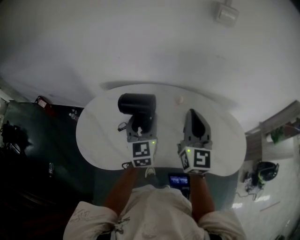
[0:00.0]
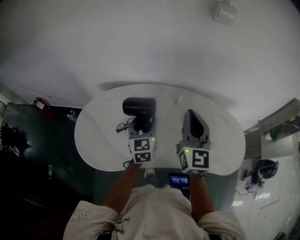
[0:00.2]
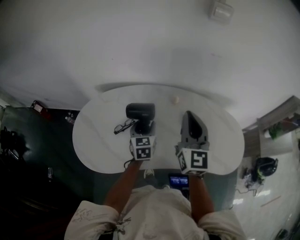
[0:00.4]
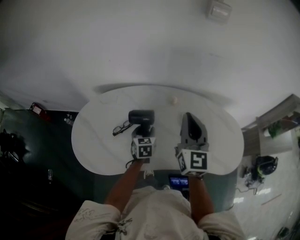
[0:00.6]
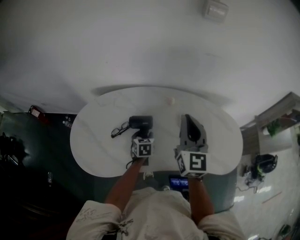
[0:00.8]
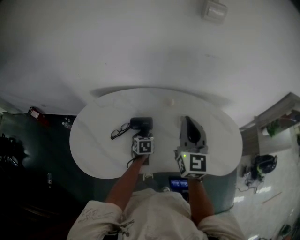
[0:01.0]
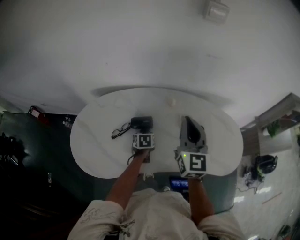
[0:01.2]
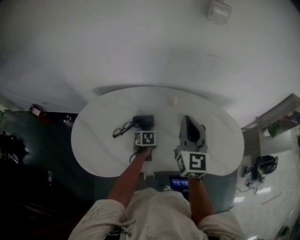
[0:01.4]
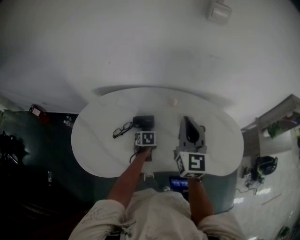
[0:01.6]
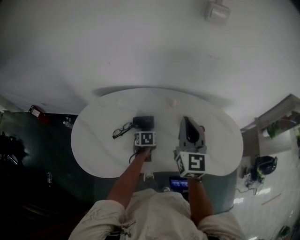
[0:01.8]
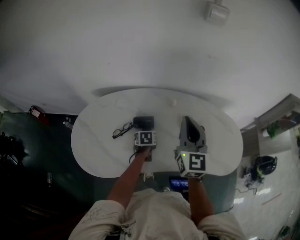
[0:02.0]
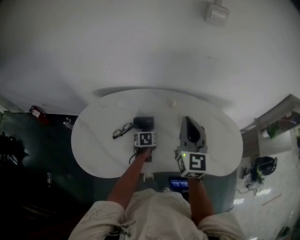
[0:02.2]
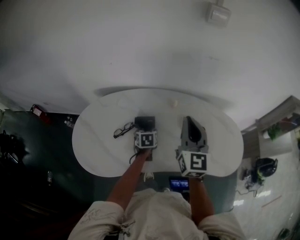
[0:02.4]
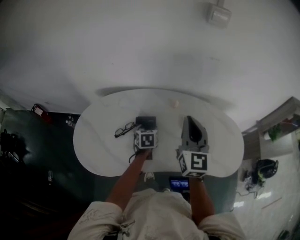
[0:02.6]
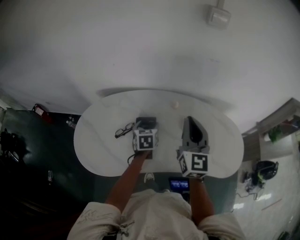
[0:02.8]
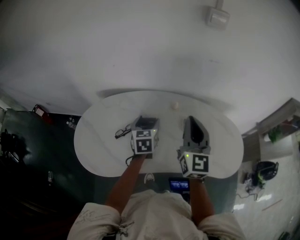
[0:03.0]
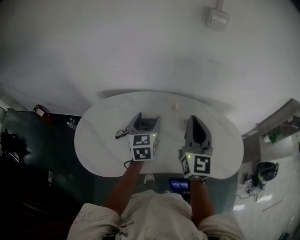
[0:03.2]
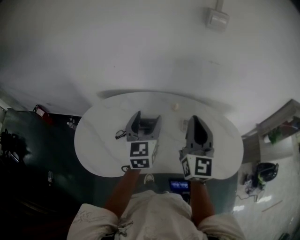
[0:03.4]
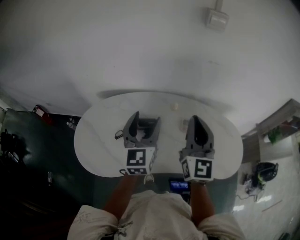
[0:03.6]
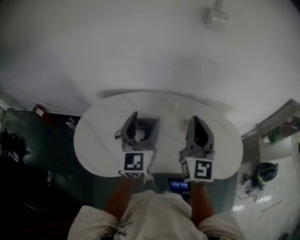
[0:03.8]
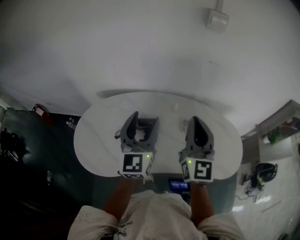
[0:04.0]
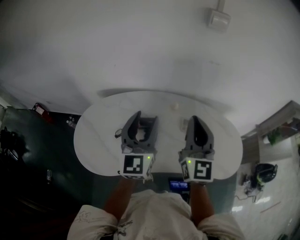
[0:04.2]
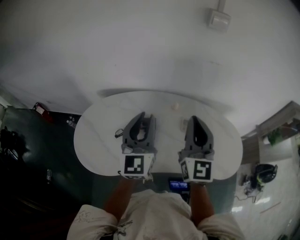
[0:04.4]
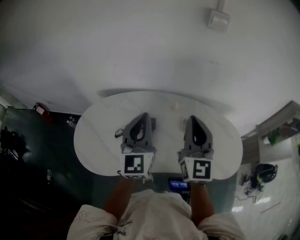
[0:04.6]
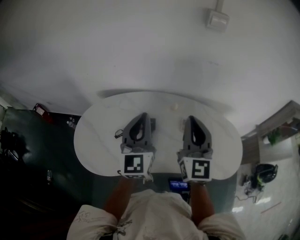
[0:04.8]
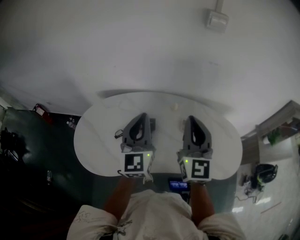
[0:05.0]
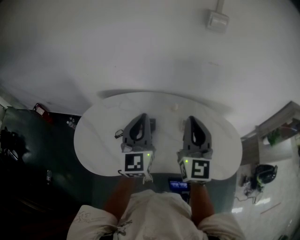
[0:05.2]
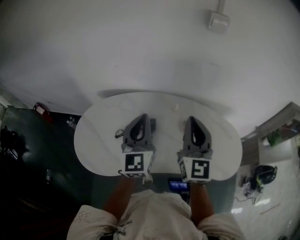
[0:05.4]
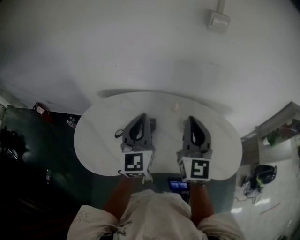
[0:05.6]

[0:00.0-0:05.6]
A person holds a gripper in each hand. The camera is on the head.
0:00.0 to 0:01.4: The left gripper moves downward, roughly 30 cm, and angles its fingers downward, by roughly 50 degrees.
0:01.4 to 0:02.8: The left gripper moves upward, about 15 cm, and swivels roughly 20 degrees.
0:02.8 to 0:04.2: The left gripper goes some 25 cm upward, and points its fingers about 40 degrees further upward; the right gripper goes some 5 cm upward.
0:04.2 to 0:05.6: The left gripper closes up.

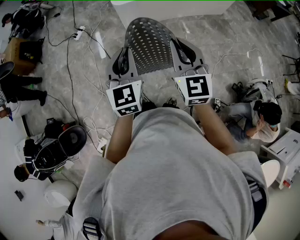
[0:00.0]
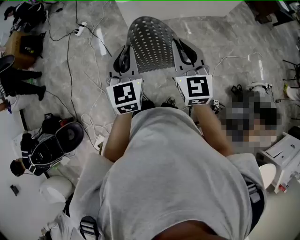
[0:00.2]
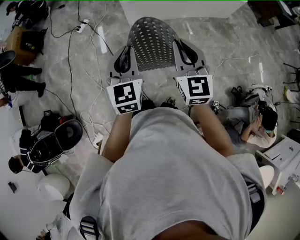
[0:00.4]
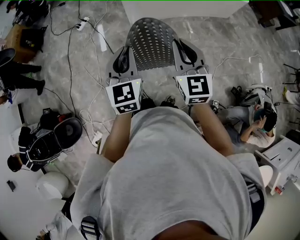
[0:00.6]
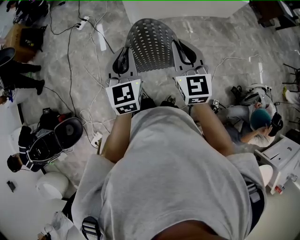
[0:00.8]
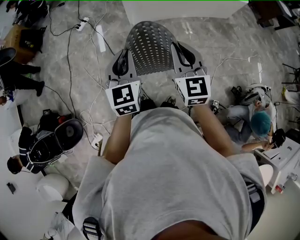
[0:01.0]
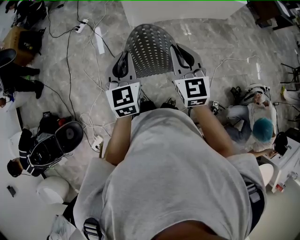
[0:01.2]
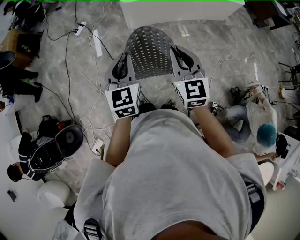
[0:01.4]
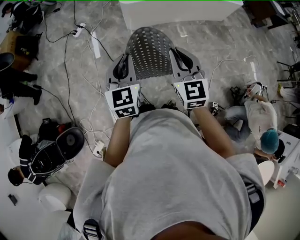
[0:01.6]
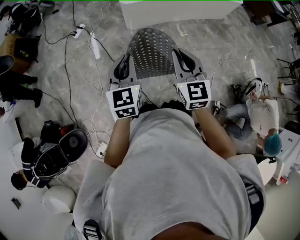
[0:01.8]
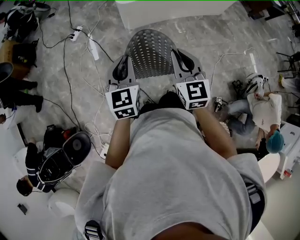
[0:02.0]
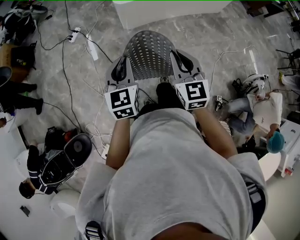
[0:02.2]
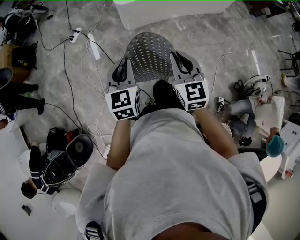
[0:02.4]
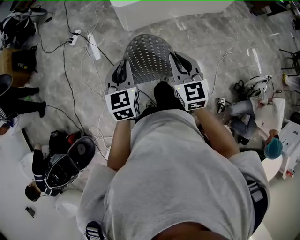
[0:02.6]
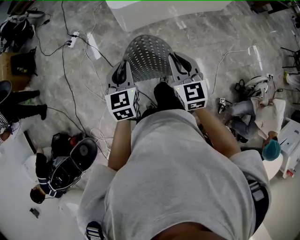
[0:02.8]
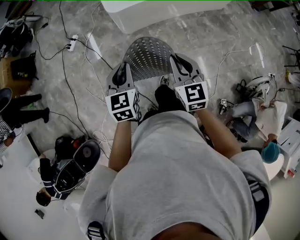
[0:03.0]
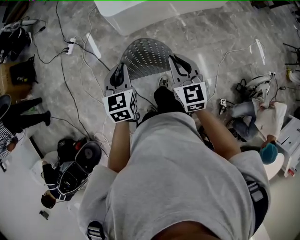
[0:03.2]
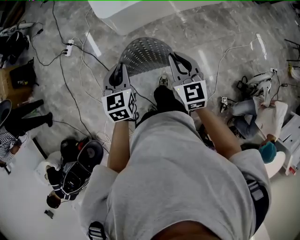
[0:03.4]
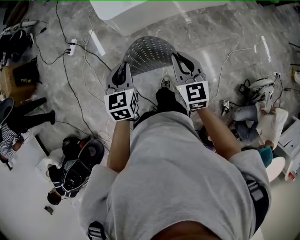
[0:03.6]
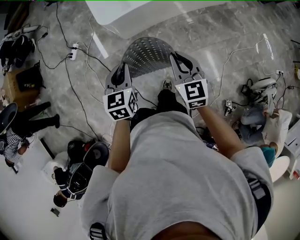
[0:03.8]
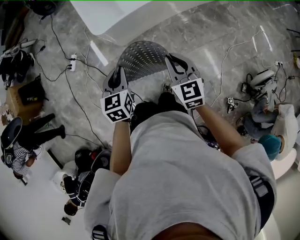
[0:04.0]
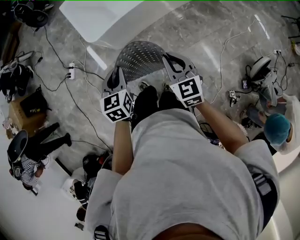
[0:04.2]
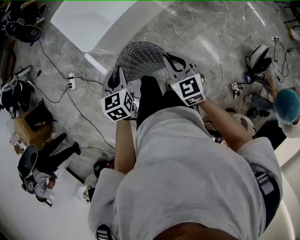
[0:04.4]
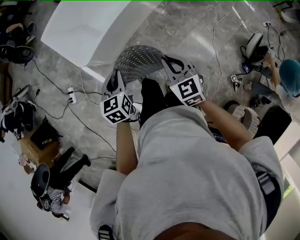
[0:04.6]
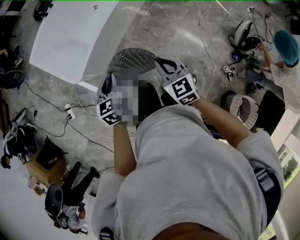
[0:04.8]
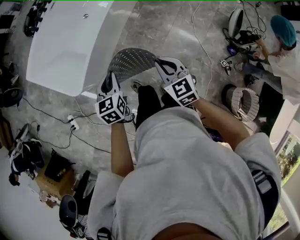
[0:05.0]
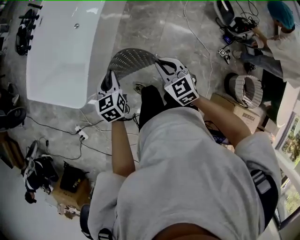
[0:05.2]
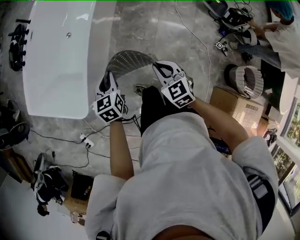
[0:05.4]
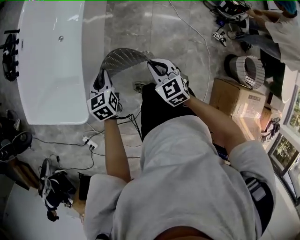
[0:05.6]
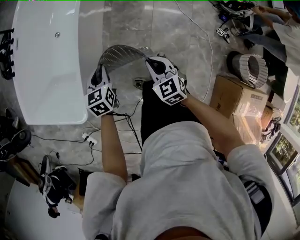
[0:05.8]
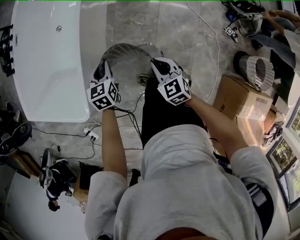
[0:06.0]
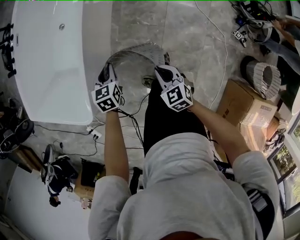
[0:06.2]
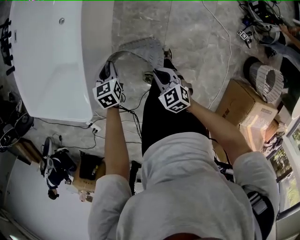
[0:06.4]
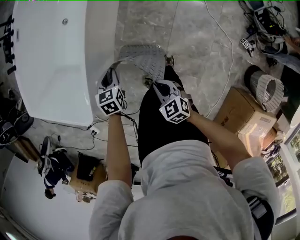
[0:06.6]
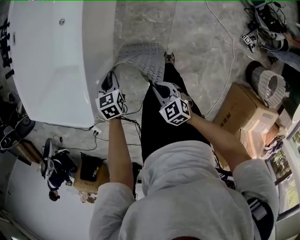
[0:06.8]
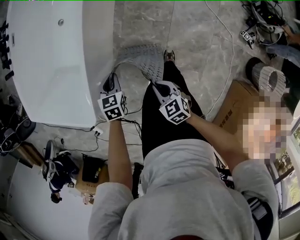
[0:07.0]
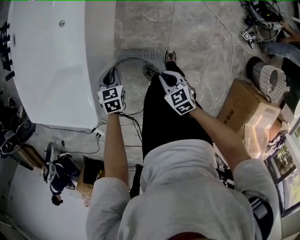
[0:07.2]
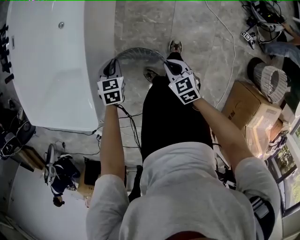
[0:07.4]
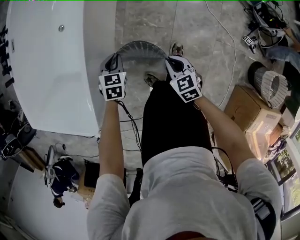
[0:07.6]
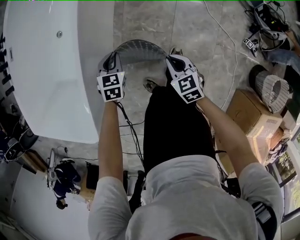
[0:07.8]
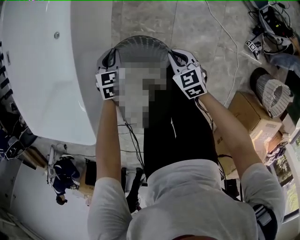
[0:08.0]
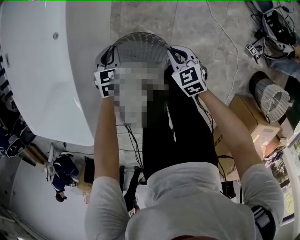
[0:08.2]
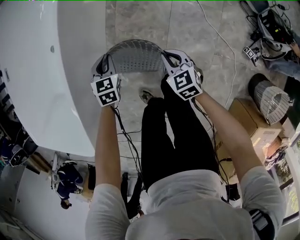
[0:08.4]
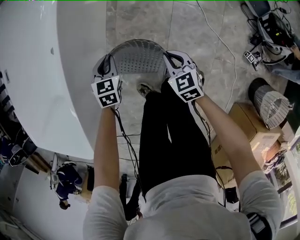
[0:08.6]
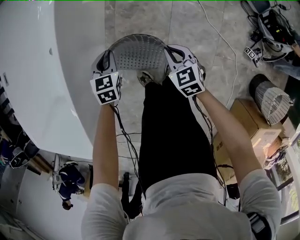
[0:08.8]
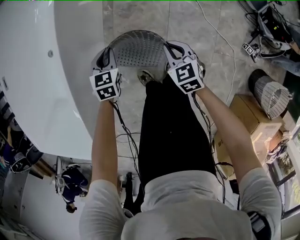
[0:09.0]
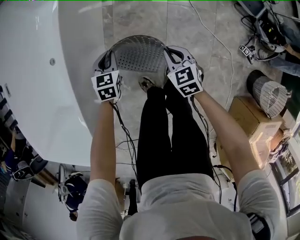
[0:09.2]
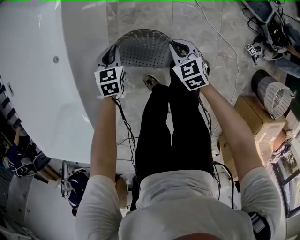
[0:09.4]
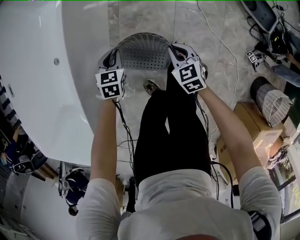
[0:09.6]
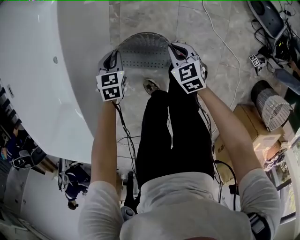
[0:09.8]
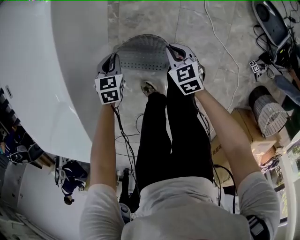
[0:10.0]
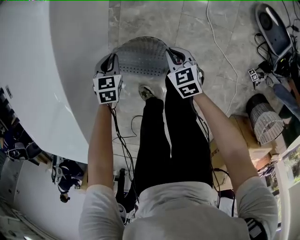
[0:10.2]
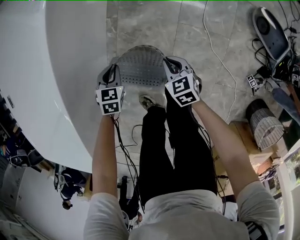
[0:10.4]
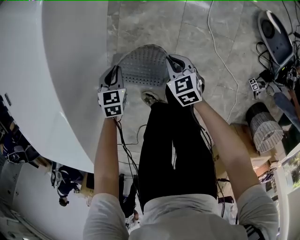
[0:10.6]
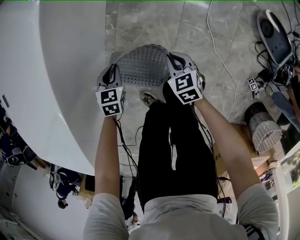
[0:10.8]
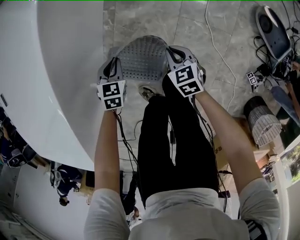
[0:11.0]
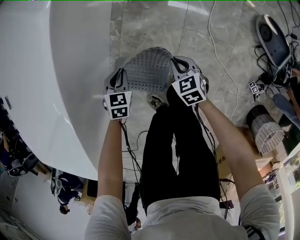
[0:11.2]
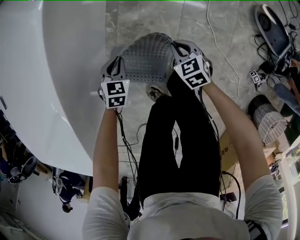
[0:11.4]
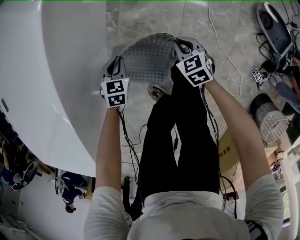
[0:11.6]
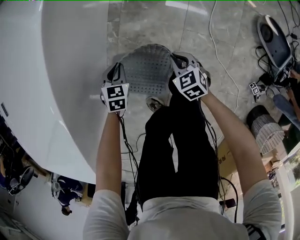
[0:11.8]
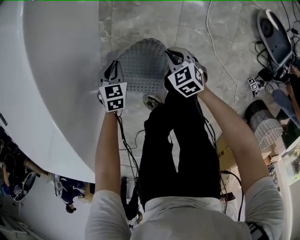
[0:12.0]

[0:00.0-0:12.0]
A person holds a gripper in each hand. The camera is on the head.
0:00.0 to 0:01.6: The two grippers go about 10 cm to the left.
0:01.6 to 0:03.0: The grippers both shift forward and downward by approximately 15 cm.
0:03.0 to 0:04.4: The right gripper heads forward, to the right and downward, covering some 20 cm. The left gripper heads forward and to the right, covering some 25 cm.
0:04.4 to 0:06.0: The right gripper heads downward, covering some 20 cm, and turns by some 40 degrees. Meanwhile the left gripper changes place by roughly 35 cm, and turns by approximately 40 degrees.
0:06.0 to 0:07.6: The grippers both shift downward and forward by roughly 15 cm. The left gripper rotates about 20 degrees.
0:07.6 to 0:09.0: The left gripper moves forward, to the right and downward, about 20 cm. Meanwhile the right gripper travels forward and to the right by some 25 cm.
0:09.0 to 0:10.4: The two grippers go approximately 15 cm forward, downward and to the right.
0:10.4 to 0:12.0: The left gripper shifts about 10 cm downward, while the right gripper travels downward and forward by some 10 cm.

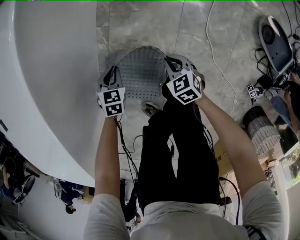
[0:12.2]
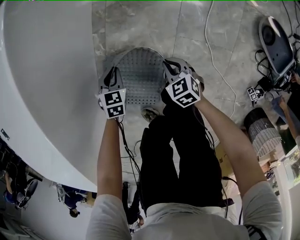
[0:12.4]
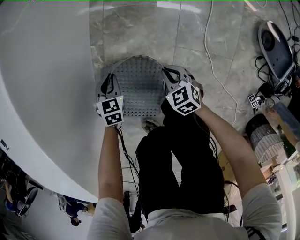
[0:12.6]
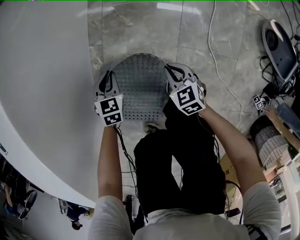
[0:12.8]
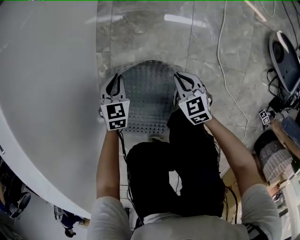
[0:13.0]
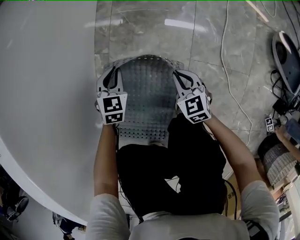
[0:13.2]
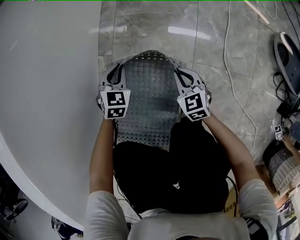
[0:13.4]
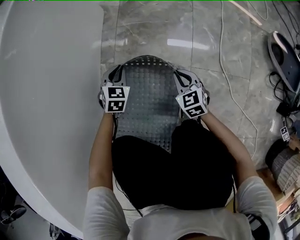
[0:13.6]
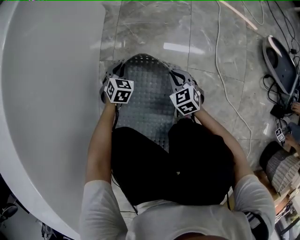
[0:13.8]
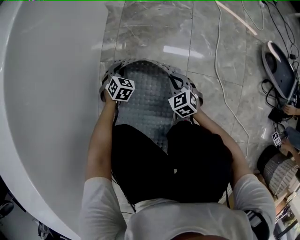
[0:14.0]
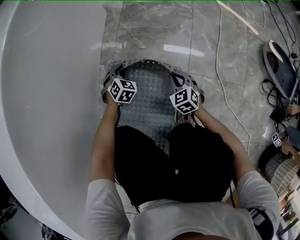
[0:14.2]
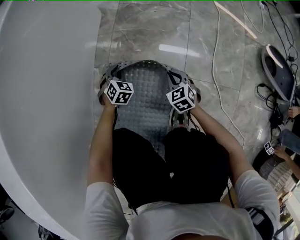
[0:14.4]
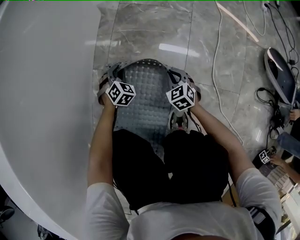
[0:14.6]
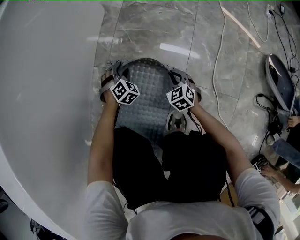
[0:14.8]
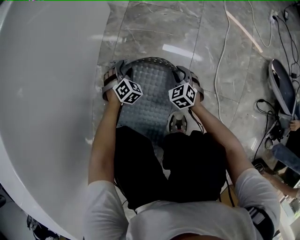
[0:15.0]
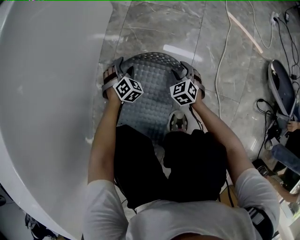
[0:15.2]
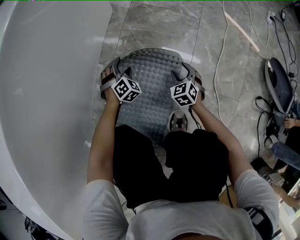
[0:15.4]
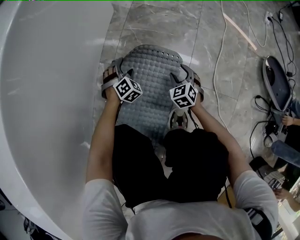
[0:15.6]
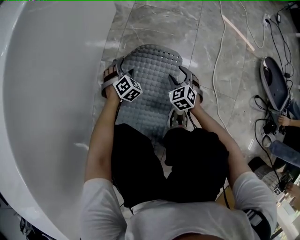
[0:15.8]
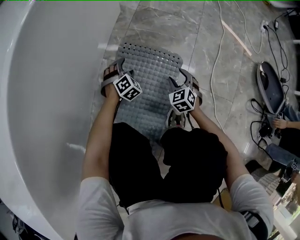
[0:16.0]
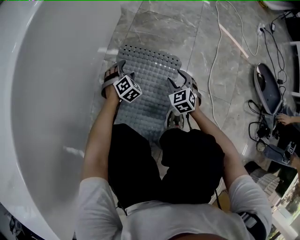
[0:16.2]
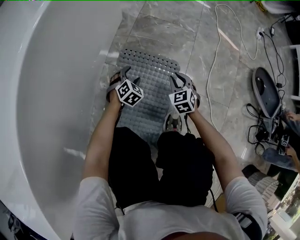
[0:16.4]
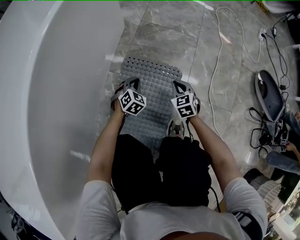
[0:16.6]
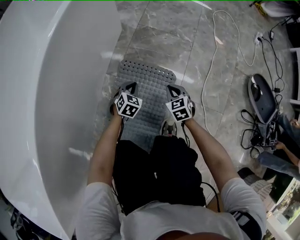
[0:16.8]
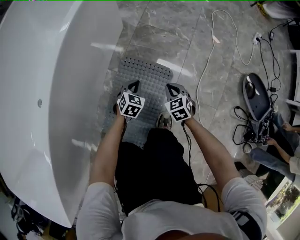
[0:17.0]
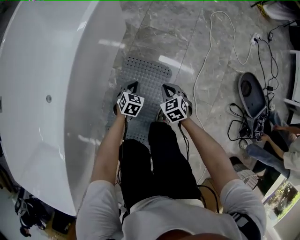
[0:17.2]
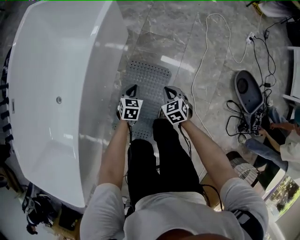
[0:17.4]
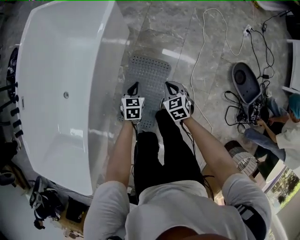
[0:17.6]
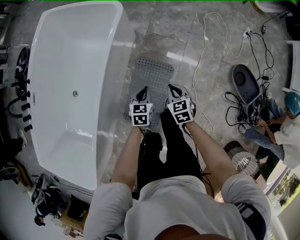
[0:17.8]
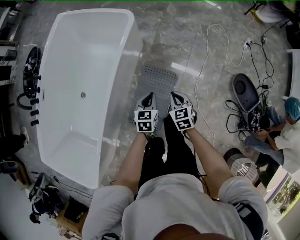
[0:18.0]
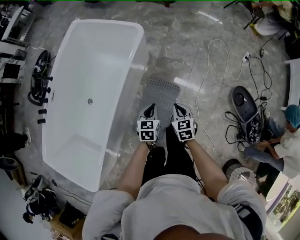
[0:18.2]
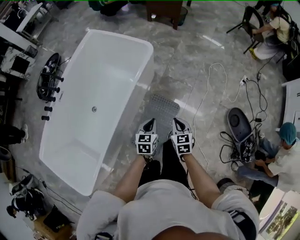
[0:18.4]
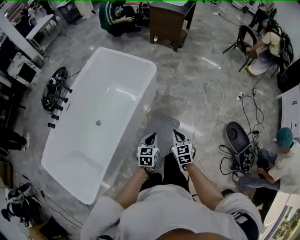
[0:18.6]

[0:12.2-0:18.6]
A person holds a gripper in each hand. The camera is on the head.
0:12.2 to 0:13.8: The right gripper travels downward by about 15 cm, and rotates some 20 degrees; the left gripper travels downward and forward by approximately 20 cm, and changes its angle by some 30 degrees.
0:13.8 to 0:15.4: The left gripper shifts by about 5 cm, and opens up. Meanwhile the right gripper moves forward and to the right, about 10 cm, and opens.
0:15.4 to 0:17.0: The grippers both shift upward by approximately 20 cm. The left gripper changes its angle by about 40 degrees, and closes, while the right gripper closes up.
0:17.0 to 0:18.6: The two grippers go roughly 60 cm upward. The left gripper turns by approximately 30 degrees.
